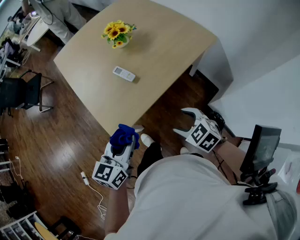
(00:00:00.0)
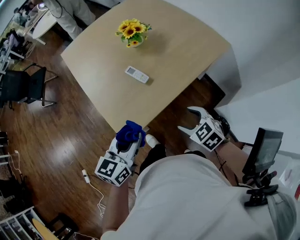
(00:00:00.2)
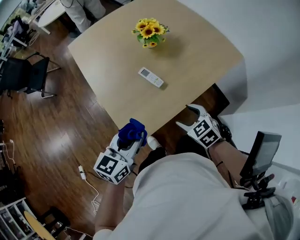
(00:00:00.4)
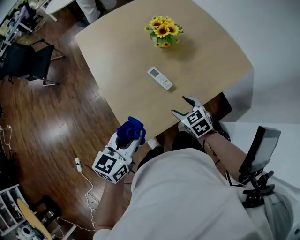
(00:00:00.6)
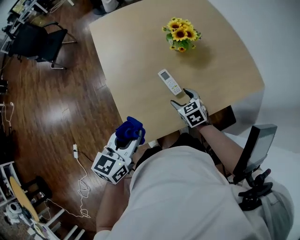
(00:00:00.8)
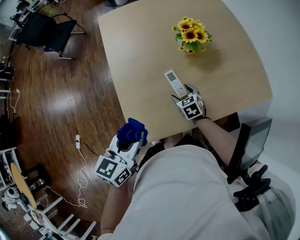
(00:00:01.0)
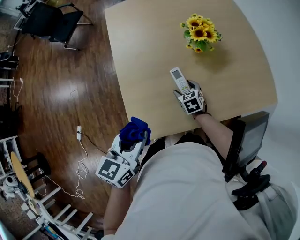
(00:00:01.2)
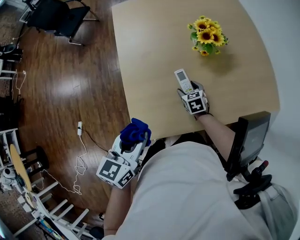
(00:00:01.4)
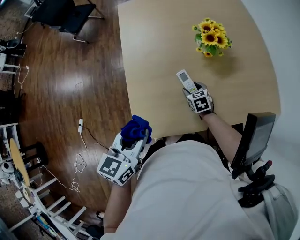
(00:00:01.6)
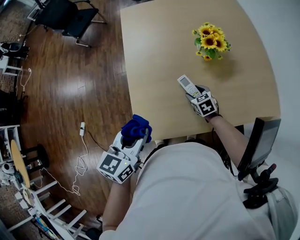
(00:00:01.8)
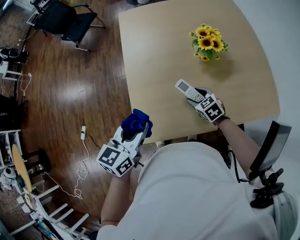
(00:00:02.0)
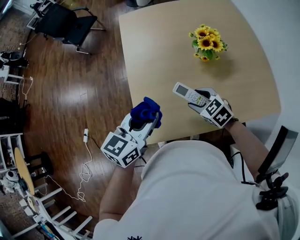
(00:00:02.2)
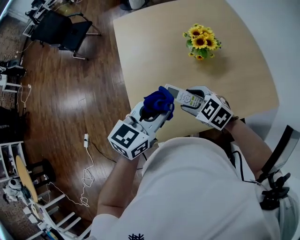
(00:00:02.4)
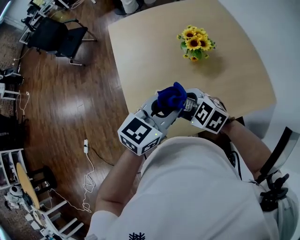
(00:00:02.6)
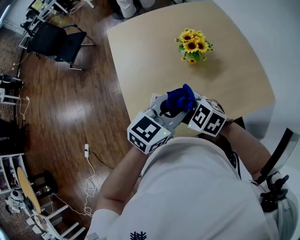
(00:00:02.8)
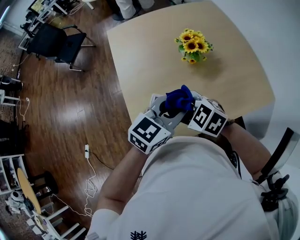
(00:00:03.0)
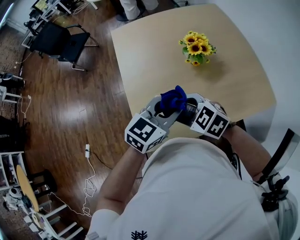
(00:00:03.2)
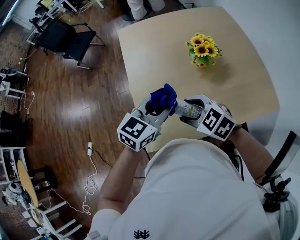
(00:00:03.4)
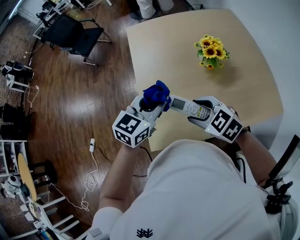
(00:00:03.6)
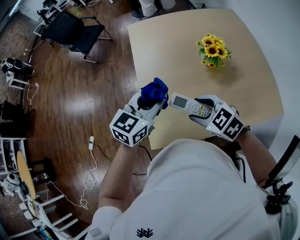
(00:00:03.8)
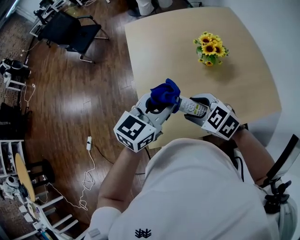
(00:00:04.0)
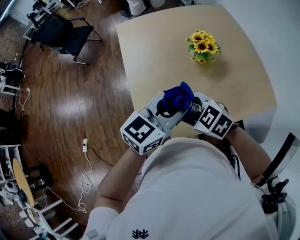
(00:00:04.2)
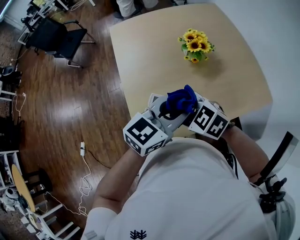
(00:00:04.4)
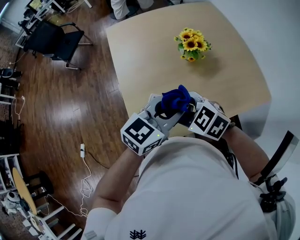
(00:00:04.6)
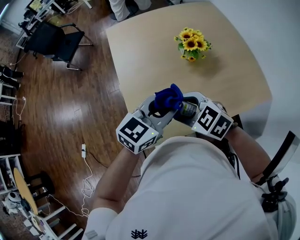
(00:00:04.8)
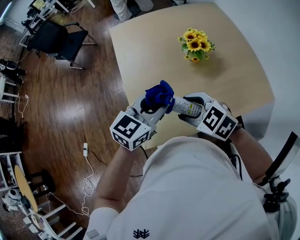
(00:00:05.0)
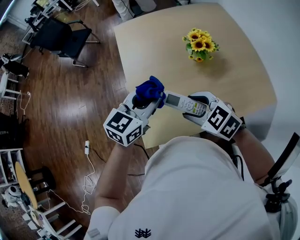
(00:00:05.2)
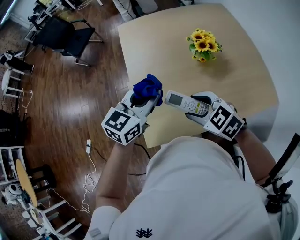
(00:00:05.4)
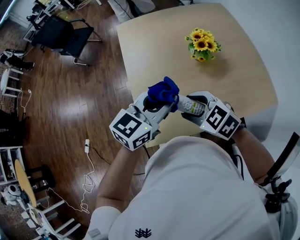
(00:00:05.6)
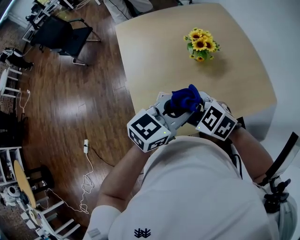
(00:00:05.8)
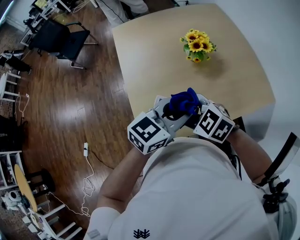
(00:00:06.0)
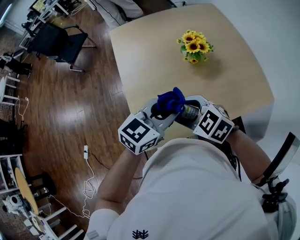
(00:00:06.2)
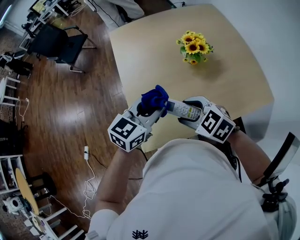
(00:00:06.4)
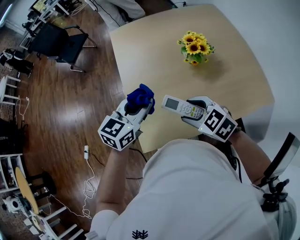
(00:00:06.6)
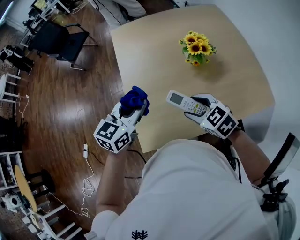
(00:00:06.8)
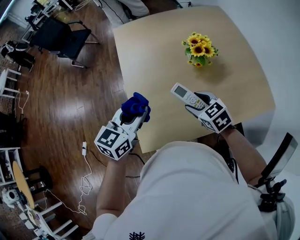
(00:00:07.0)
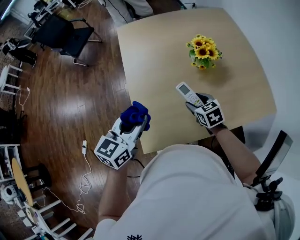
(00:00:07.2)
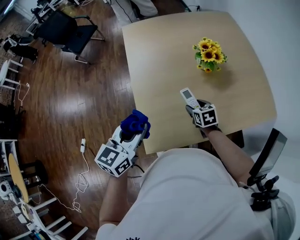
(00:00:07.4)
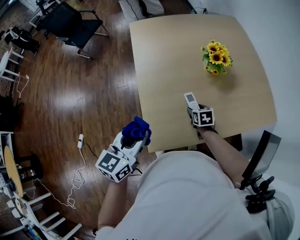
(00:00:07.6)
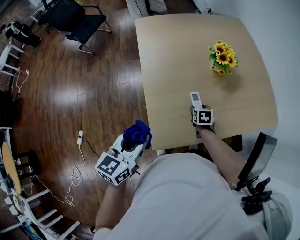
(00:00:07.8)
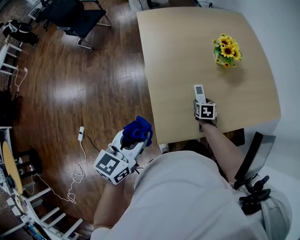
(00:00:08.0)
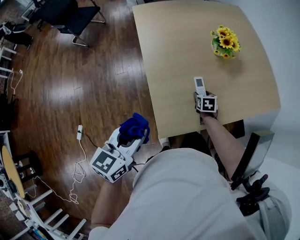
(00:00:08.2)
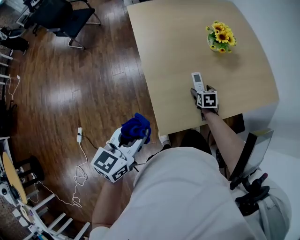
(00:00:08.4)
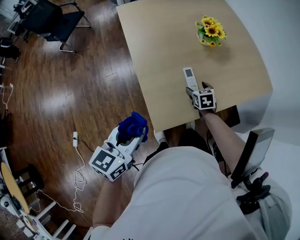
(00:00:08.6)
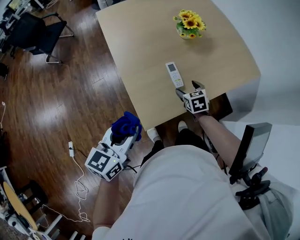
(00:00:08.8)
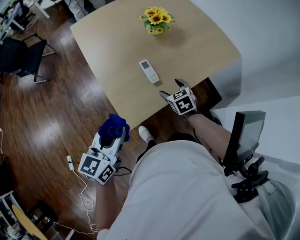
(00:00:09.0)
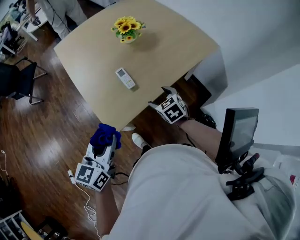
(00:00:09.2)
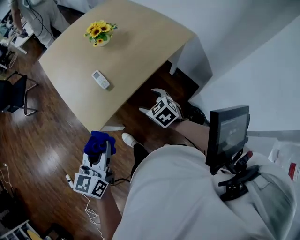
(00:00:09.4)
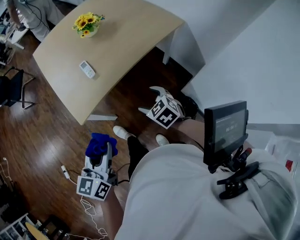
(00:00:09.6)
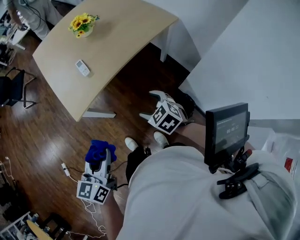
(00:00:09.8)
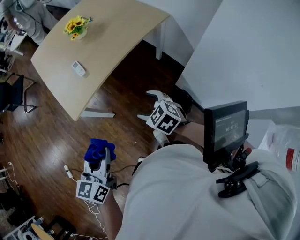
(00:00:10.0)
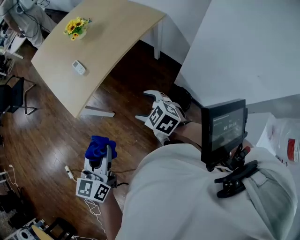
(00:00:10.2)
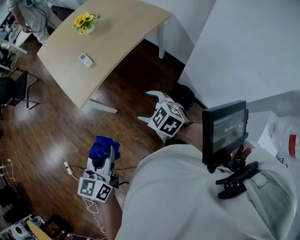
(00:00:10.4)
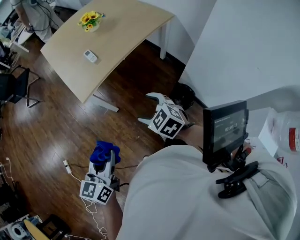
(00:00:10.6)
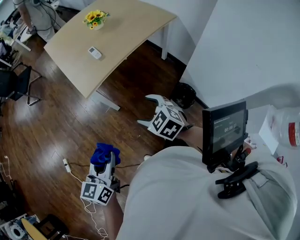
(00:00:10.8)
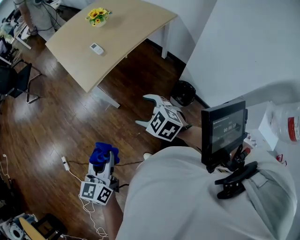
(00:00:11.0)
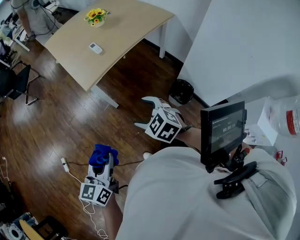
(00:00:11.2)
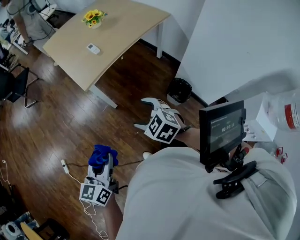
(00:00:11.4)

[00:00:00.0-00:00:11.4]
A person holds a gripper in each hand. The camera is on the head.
00:00:00.0 to 00:00:01.4: The right gripper travels forward and downward by about 40 cm. Meanwhile the left gripper shifts some 20 cm forward and to the left, and changes its angle by about 30 degrees.
00:00:01.4 to 00:00:02.8: The left gripper moves to the right and forward, some 20 cm, and changes its angle by about 40 degrees. Meanwhile the right gripper travels upward by some 20 cm, and changes its angle by about 40 degrees.
00:00:02.8 to 00:00:04.2: The right gripper moves upward, roughly 5 cm. Meanwhile the left gripper travels upward and to the left by some 10 cm.
00:00:04.2 to 00:00:05.6: The left gripper reaches roughly 10 cm to the left, then returns.
00:00:05.6 to 00:00:07.2: The left gripper goes approximately 10 cm to the left. Meanwhile the right gripper is displaced downward, forward and to the right by about 15 cm, and swivels approximately 30 degrees.
00:00:07.2 to 00:00:08.6: The right gripper shifts approximately 10 cm downward, and changes its angle by some 20 degrees. The left gripper is displaced backward and to the left by roughly 15 cm.
00:00:08.6 to 00:00:10.0: The left gripper travels to the right and backward by approximately 40 cm, while the right gripper moves backward and to the right, roughly 50 cm.
00:00:10.0 to 00:00:11.4: The grippers both shift backward and to the left by about 25 cm.

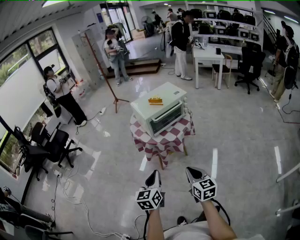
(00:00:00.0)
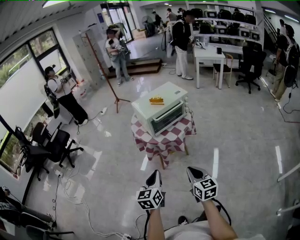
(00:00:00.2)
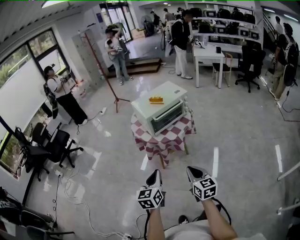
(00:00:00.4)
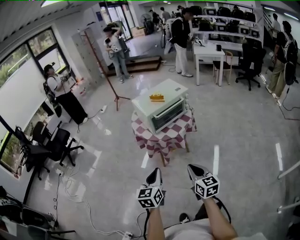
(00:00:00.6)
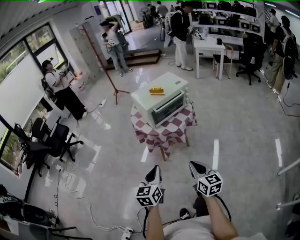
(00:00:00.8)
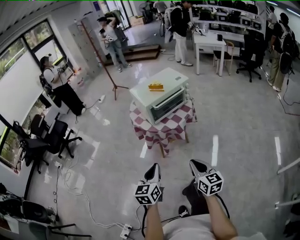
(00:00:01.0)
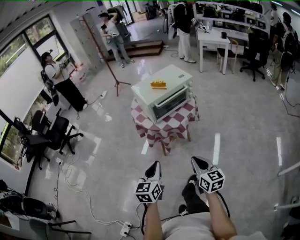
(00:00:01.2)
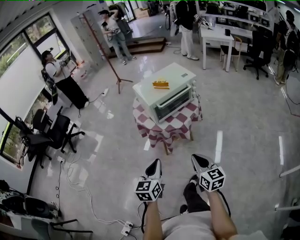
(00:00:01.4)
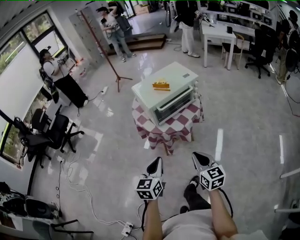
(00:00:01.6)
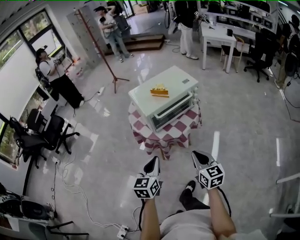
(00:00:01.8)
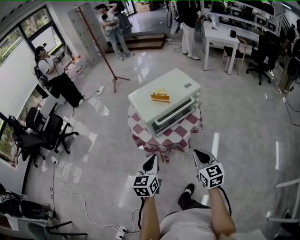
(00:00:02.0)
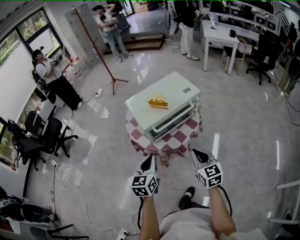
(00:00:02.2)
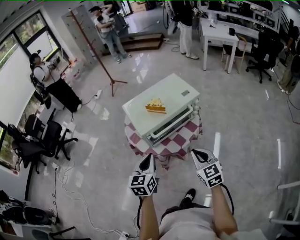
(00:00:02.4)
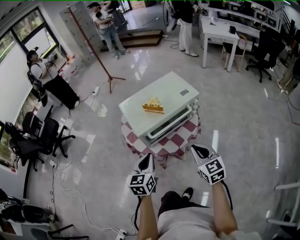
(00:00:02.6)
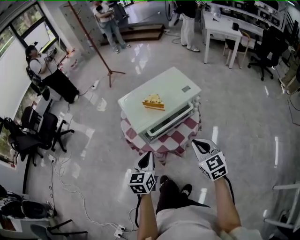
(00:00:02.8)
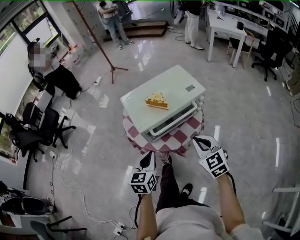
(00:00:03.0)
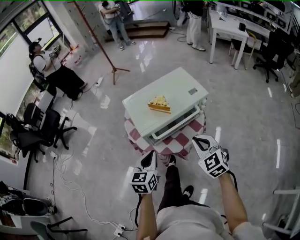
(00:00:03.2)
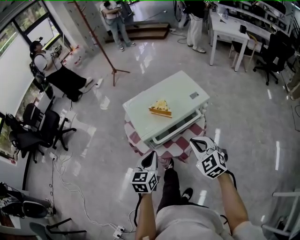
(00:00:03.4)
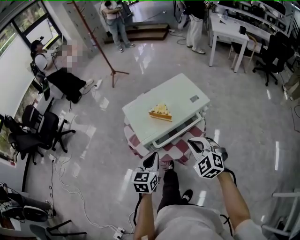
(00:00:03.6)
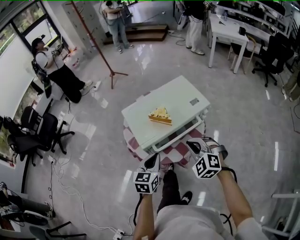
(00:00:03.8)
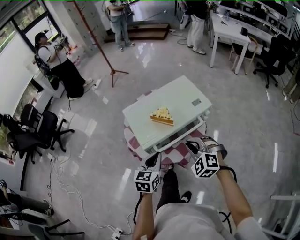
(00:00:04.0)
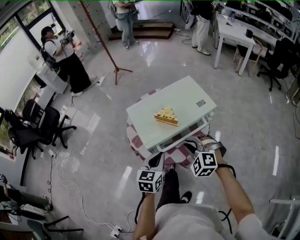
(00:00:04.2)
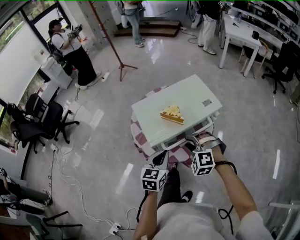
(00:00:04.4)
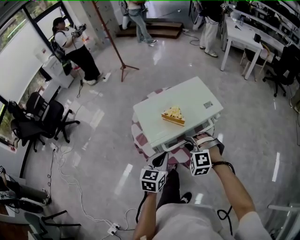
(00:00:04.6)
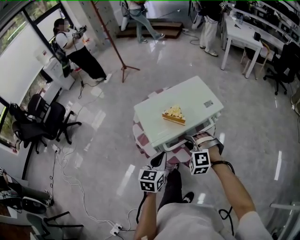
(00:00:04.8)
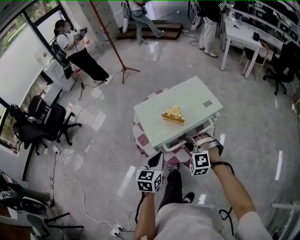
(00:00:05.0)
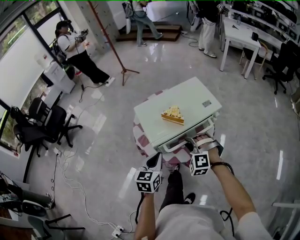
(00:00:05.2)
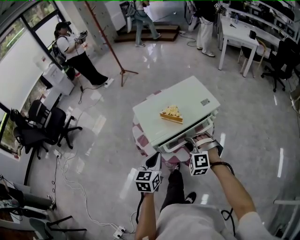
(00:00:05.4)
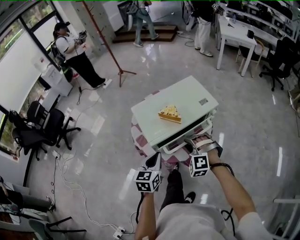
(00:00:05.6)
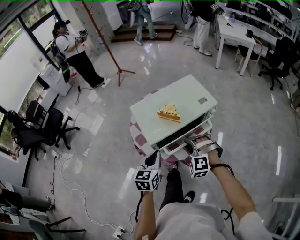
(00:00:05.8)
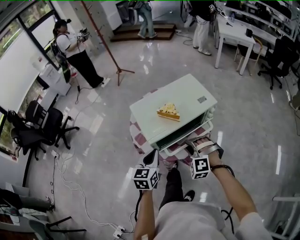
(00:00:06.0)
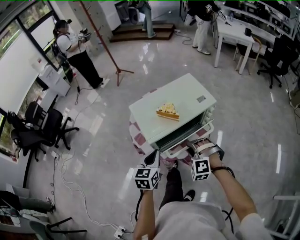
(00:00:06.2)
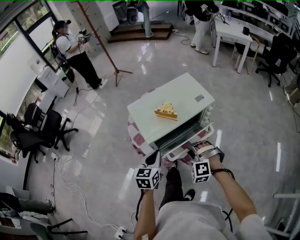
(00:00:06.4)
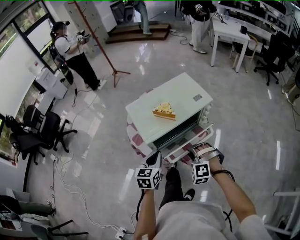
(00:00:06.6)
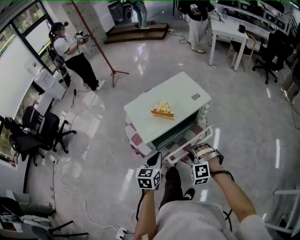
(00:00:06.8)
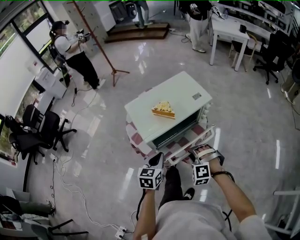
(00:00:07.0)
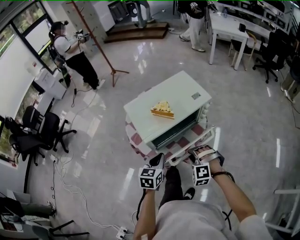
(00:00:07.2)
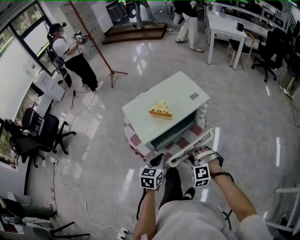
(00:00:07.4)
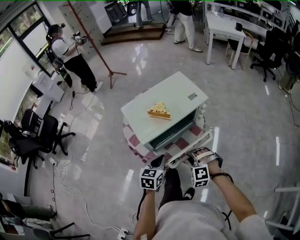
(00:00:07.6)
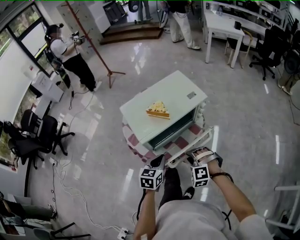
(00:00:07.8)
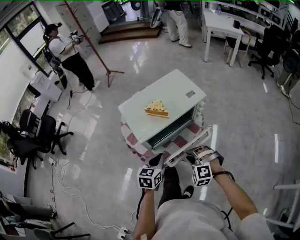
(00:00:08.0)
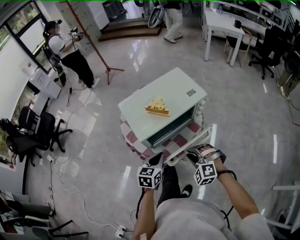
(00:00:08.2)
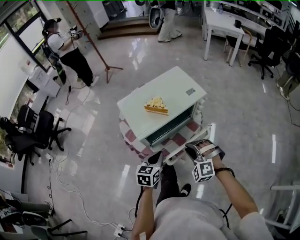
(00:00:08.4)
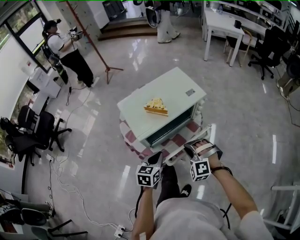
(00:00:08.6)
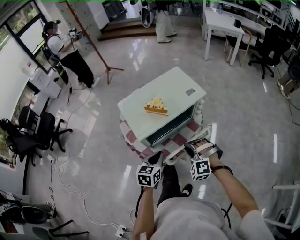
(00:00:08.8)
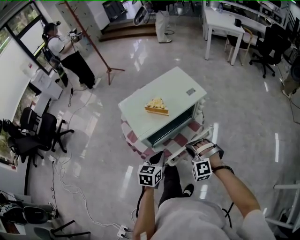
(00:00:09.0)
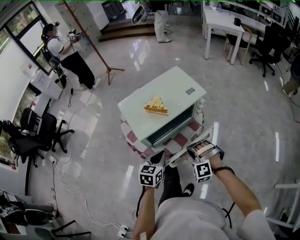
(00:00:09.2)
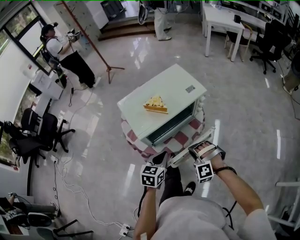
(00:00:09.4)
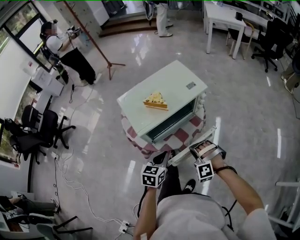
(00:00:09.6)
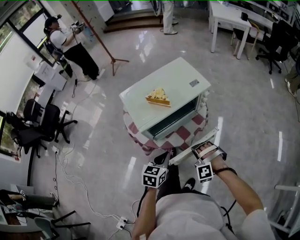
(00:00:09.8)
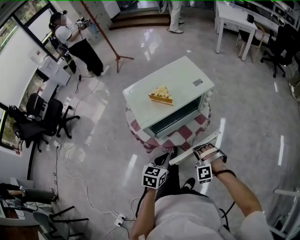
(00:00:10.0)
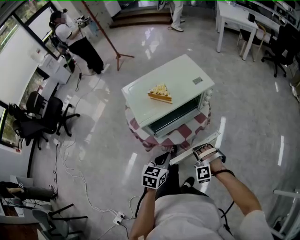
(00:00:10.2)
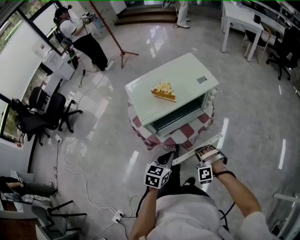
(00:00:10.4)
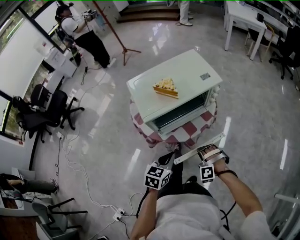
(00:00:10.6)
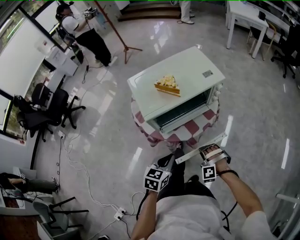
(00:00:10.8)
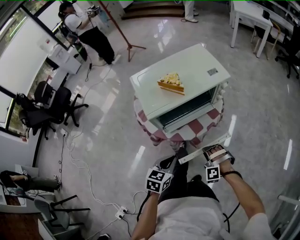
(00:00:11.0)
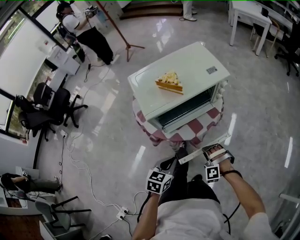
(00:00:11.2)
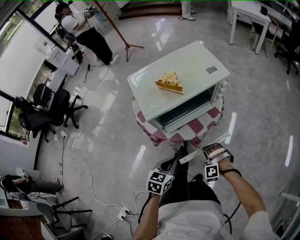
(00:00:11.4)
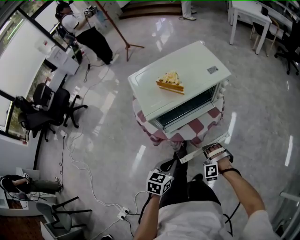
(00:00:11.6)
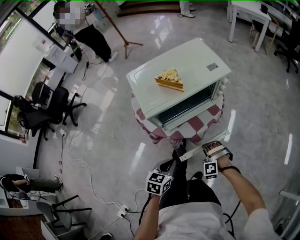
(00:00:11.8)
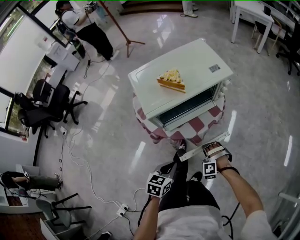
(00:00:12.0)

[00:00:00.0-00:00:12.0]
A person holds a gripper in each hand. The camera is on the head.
00:00:00.0 to 00:00:01.6: Both grippers move forward, roughly 10 cm.
00:00:01.6 to 00:00:03.0: The two grippers go roughly 25 cm forward. The right gripper turns by roughly 30 degrees.
00:00:03.0 to 00:00:04.4: The left gripper shifts about 10 cm forward; the right gripper shifts about 15 cm forward, to the left and downward, rolls counterclockwise, seen from behind, by roughly 50 degrees, and opens up.
00:00:04.4 to 00:00:06.0: The grippers make only small movements.
00:00:06.0 to 00:00:07.6: The left gripper is displaced downward and to the right by some 10 cm. The right gripper moves backward and downward, about 10 cm.
00:00:07.6 to 00:00:09.0: There are only small adjustments of the grippers.
00:00:09.0 to 00:00:10.4: The left gripper heads backward, covering approximately 5 cm. Meanwhile the right gripper travels downward and backward by some 10 cm.
00:00:10.4 to 00:00:12.0: The left gripper moves downward and backward, approximately 10 cm; the right gripper is displaced downward by roughly 10 cm.
